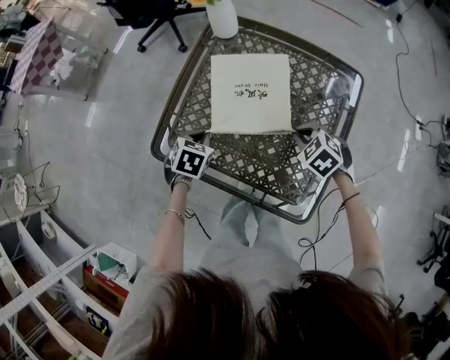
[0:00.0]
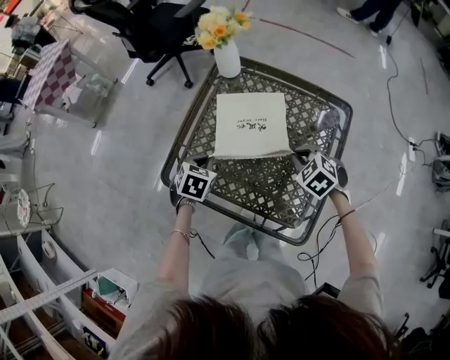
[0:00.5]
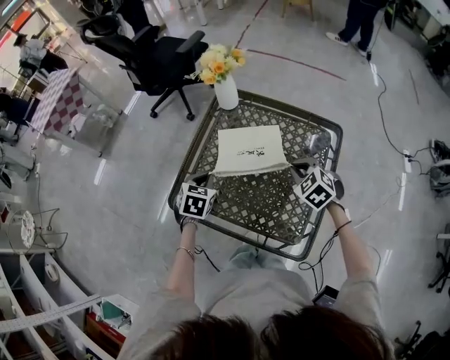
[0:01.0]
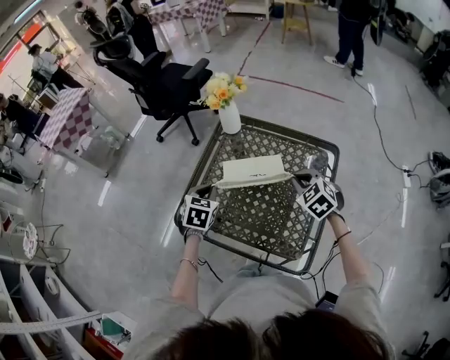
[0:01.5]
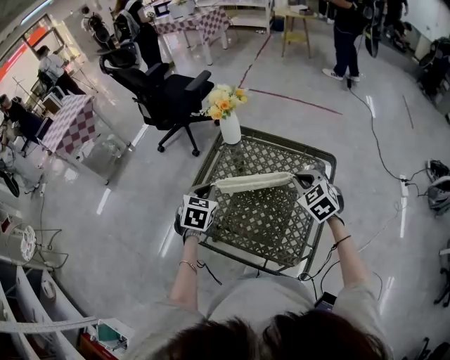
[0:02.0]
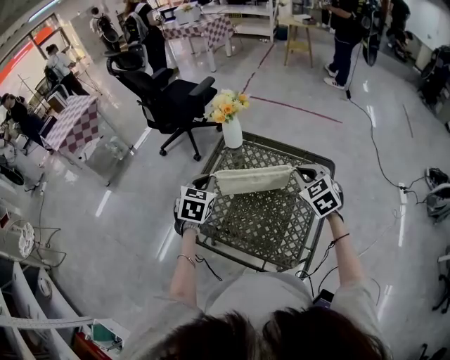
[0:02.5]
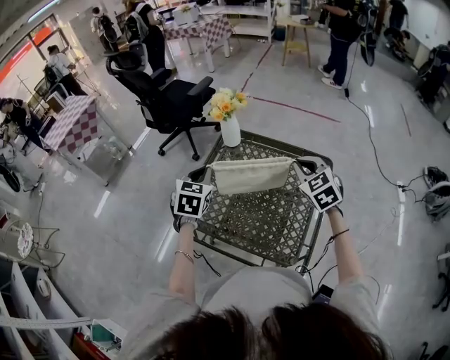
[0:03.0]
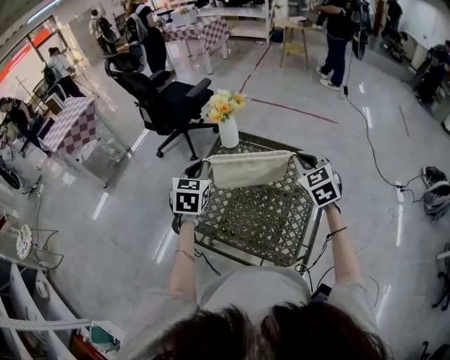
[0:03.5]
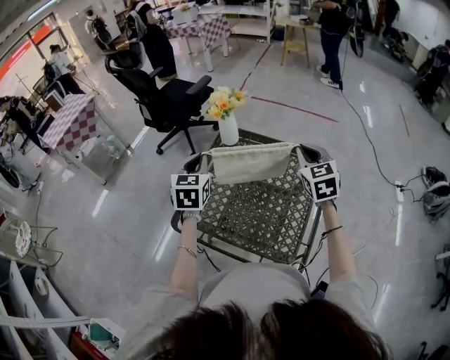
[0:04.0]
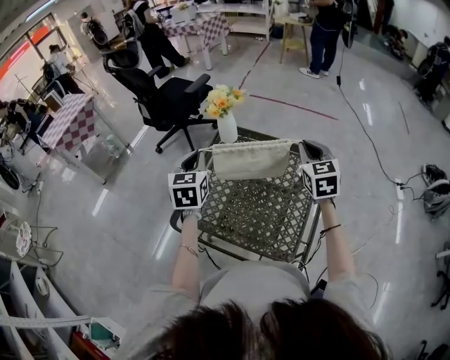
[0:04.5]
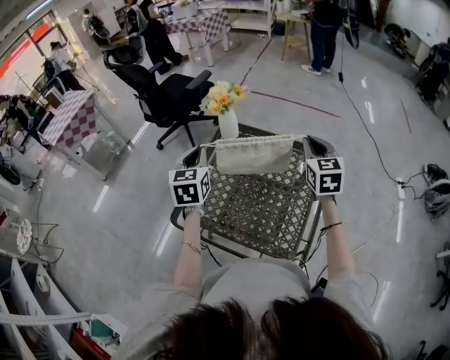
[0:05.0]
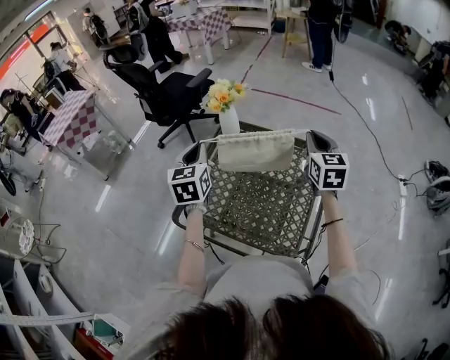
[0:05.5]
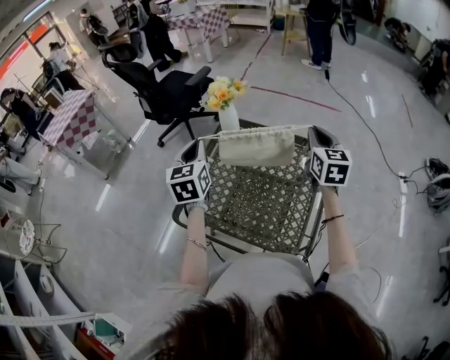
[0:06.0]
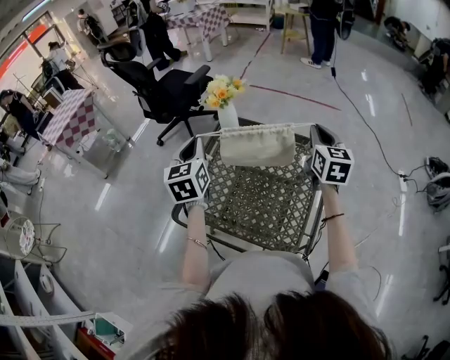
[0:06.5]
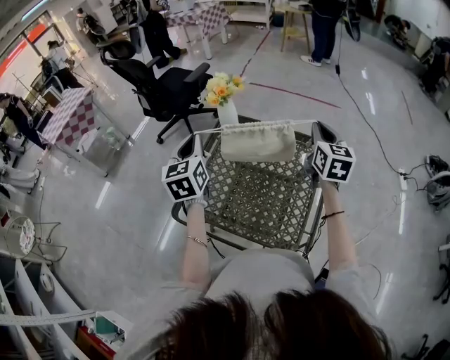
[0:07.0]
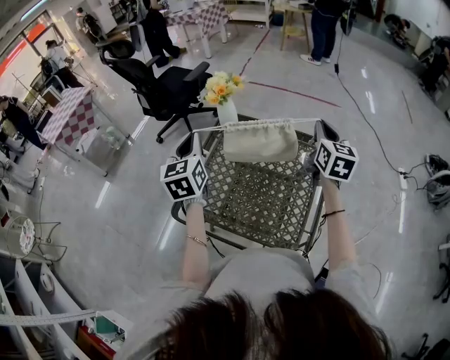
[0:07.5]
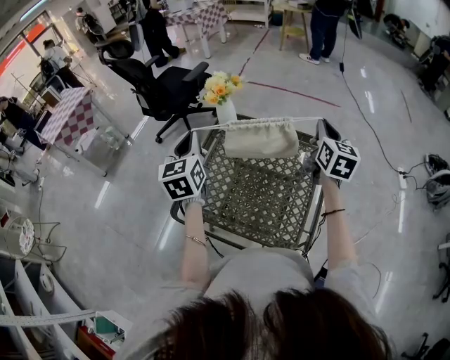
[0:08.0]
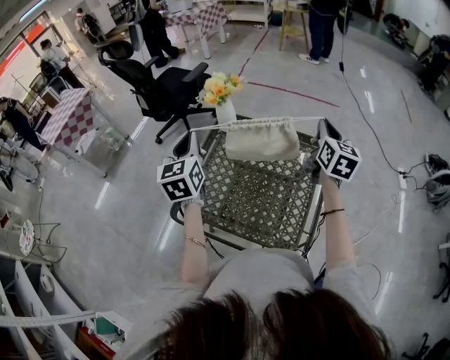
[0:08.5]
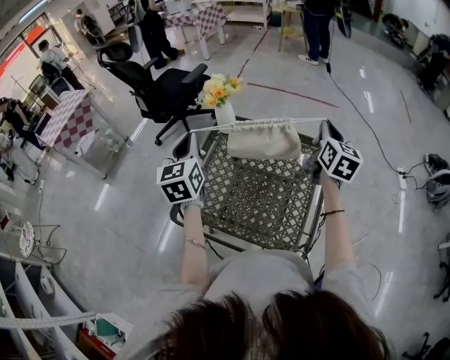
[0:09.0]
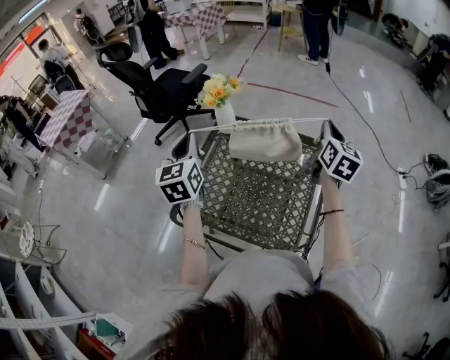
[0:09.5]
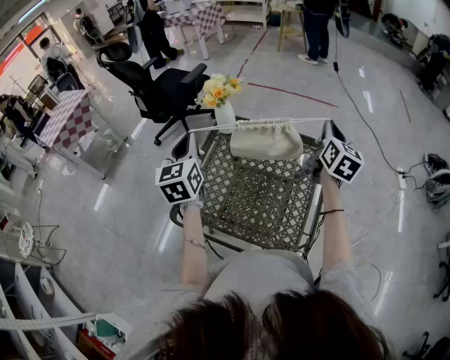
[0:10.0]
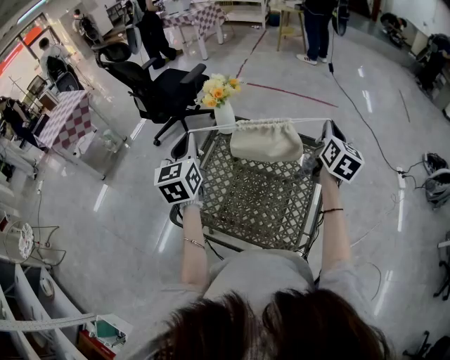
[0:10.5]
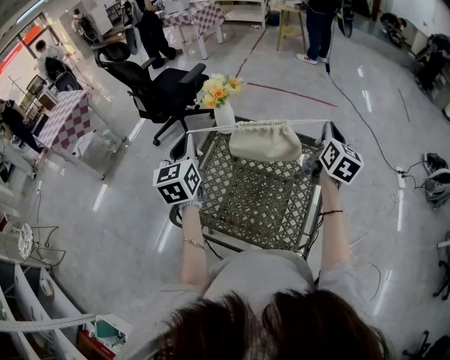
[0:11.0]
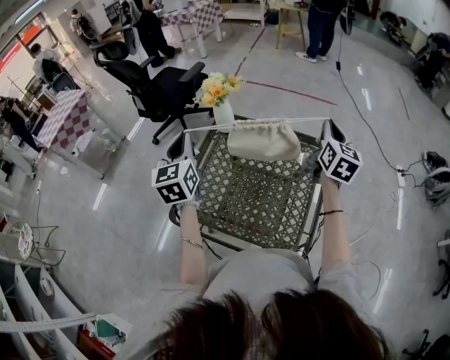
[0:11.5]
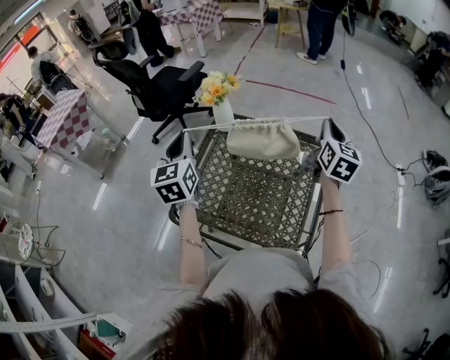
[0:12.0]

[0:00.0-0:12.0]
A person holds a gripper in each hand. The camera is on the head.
0:00.0 to 0:02.0: The two grippers go roughly 20 cm upward. The right gripper swivels some 30 degrees, while the left gripper rotates approximately 20 degrees.
0:02.0 to 0:04.0: The two grippers go approximately 10 cm upward. The left gripper changes its angle by some 20 degrees, while the right gripper changes its angle by roughly 30 degrees.
0:04.0 to 0:06.0: The right gripper turns by approximately 20 degrees.
0:06.0 to 0:08.0: There are only small adjustments of the grippers.
0:08.0 to 0:12.0: There are only small adjustments of the grippers.

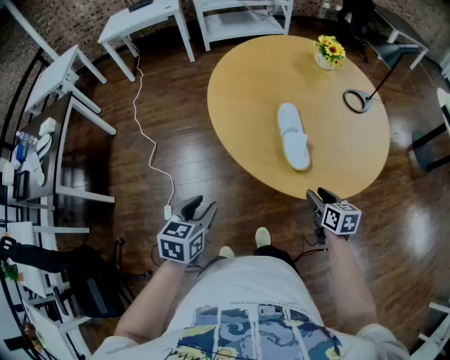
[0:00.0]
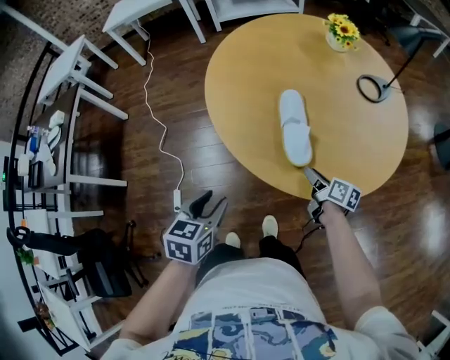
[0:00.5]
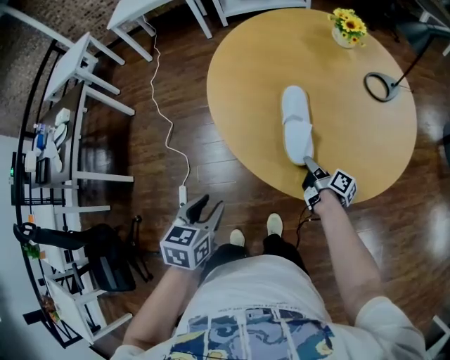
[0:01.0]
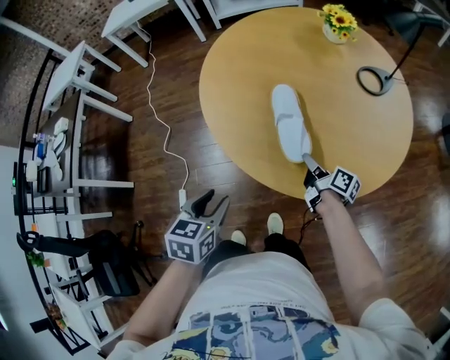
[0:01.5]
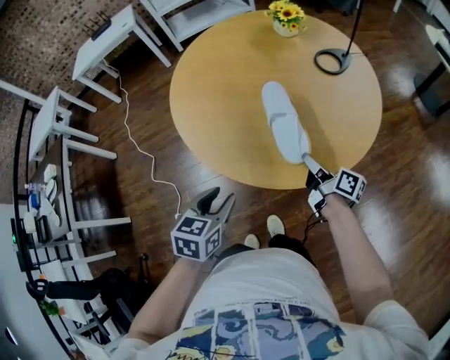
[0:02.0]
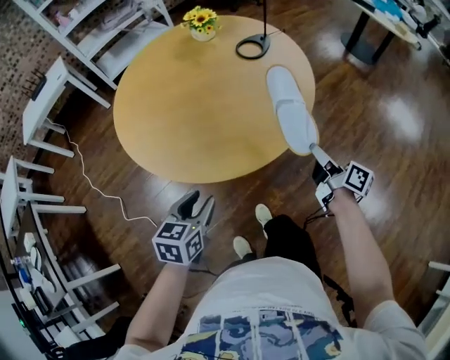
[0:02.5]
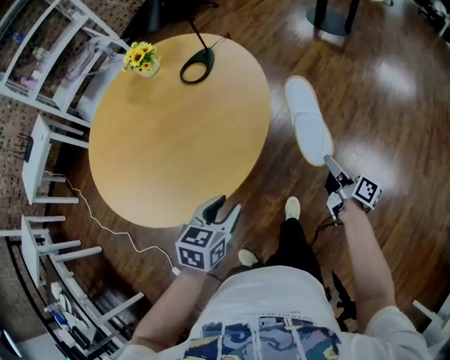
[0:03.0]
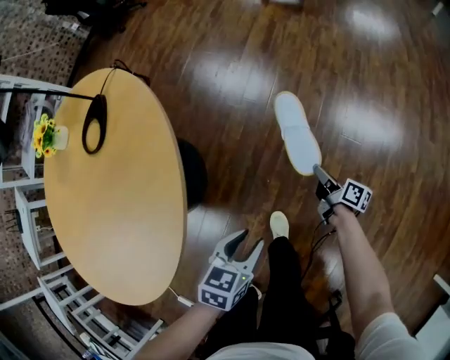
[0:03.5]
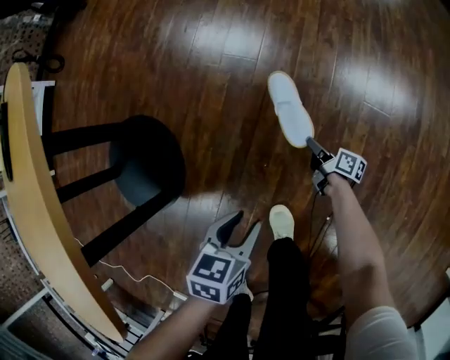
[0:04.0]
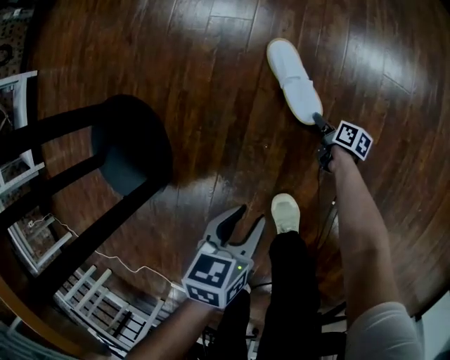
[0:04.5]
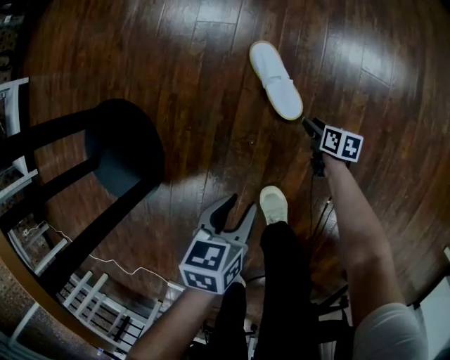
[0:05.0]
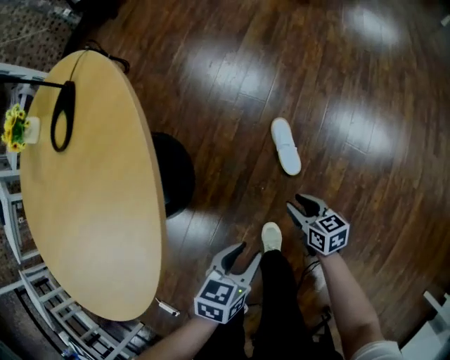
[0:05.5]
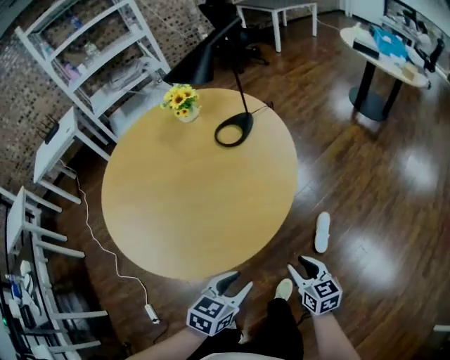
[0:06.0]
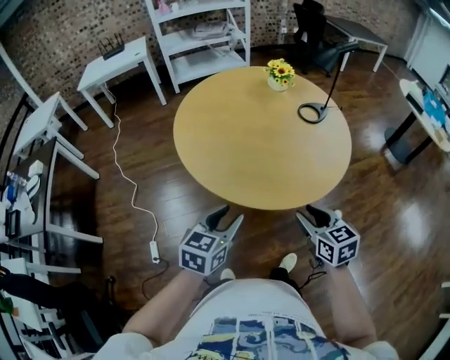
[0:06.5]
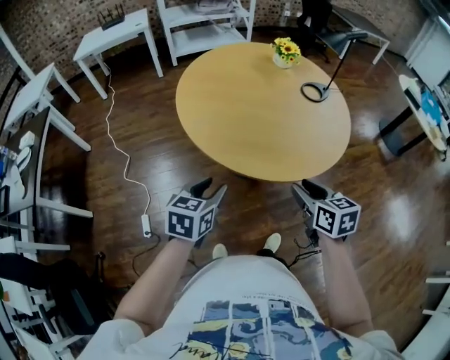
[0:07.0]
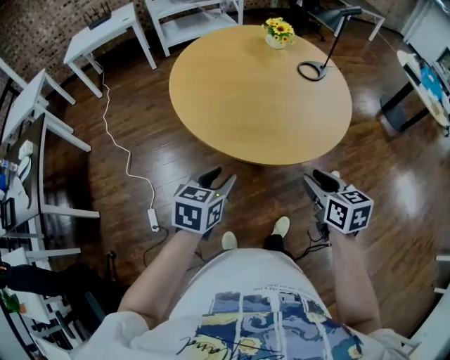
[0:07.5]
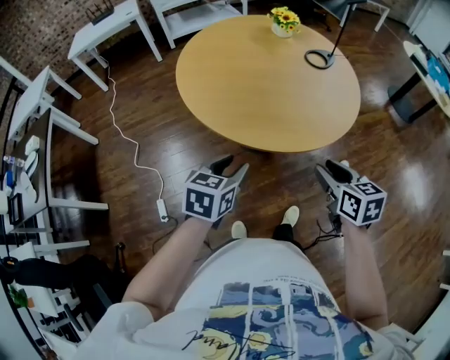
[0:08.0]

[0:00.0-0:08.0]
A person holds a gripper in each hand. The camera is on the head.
0:00.0 to 0:02.0: The left gripper is displaced to the right by some 20 cm. The right gripper goes some 10 cm to the right and forward, rotates around the line of its fingers by approximately 40 degrees, clockwise from behind, and closes its fingers.
0:02.0 to 0:04.0: The two grippers travel together, approximately 70 cm. The left gripper changes its angle by about 50 degrees; the right gripper heads downward, covering about 70 cm, and changes its angle by about 50 degrees.
0:04.0 to 0:06.0: Both grippers move upward, about 60 cm. The left gripper changes its angle by some 30 degrees. Meanwhile the right gripper rotates around the line of its fingers by some 70 degrees, counterclockwise from behind, and opens up.
0:06.0 to 0:08.0: The right gripper is displaced to the left and upward by approximately 40 cm, while the left gripper heads to the left, covering about 40 cm, and swivels roughly 20 degrees.

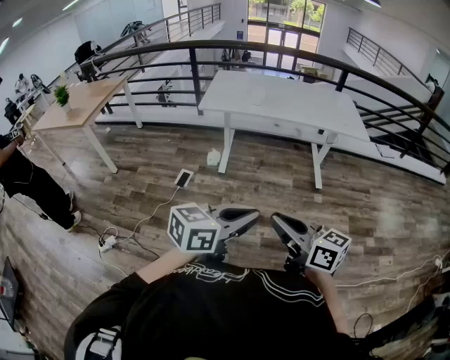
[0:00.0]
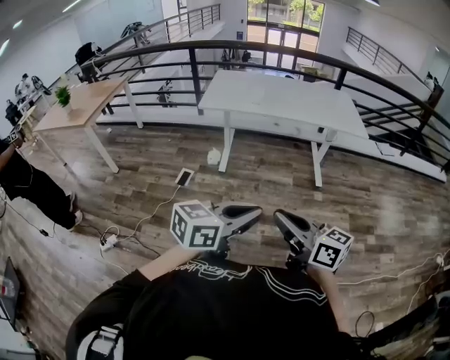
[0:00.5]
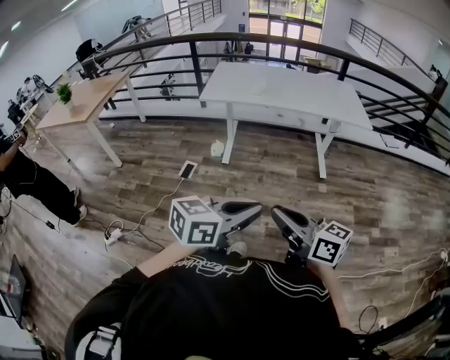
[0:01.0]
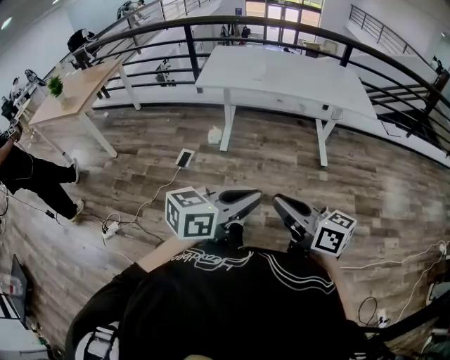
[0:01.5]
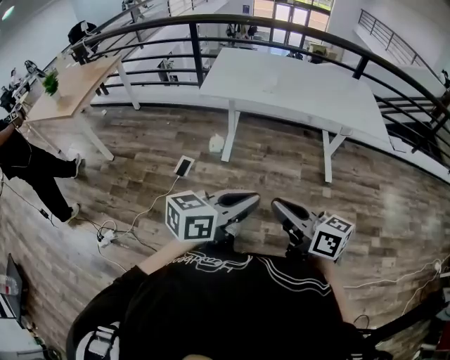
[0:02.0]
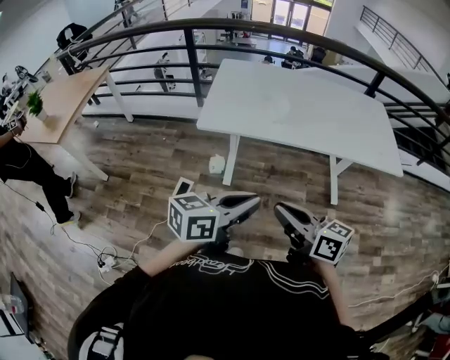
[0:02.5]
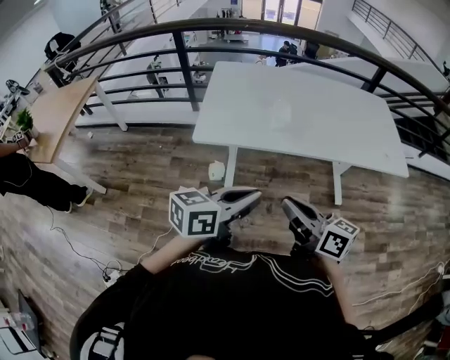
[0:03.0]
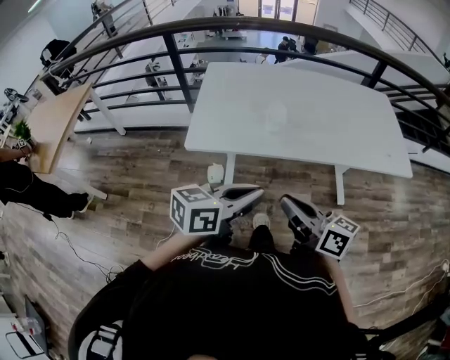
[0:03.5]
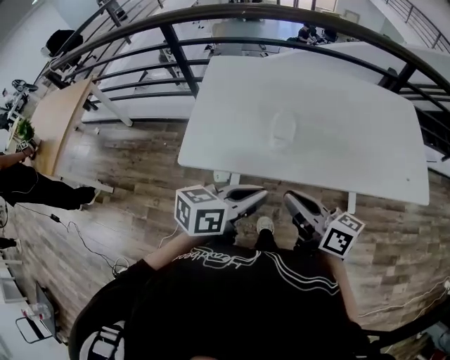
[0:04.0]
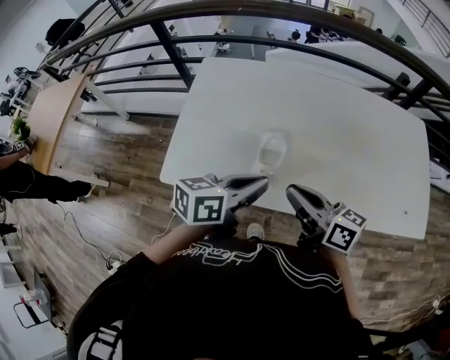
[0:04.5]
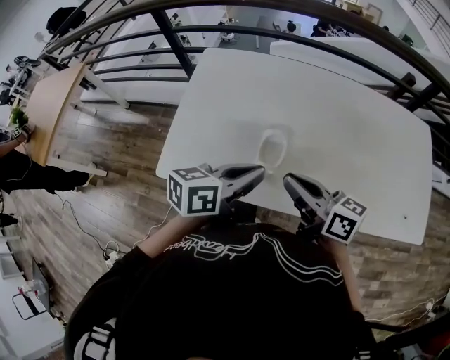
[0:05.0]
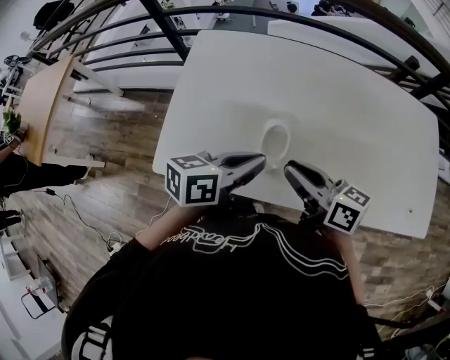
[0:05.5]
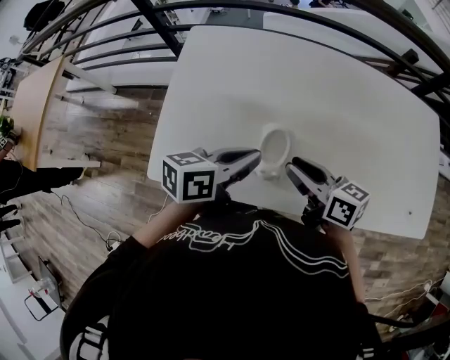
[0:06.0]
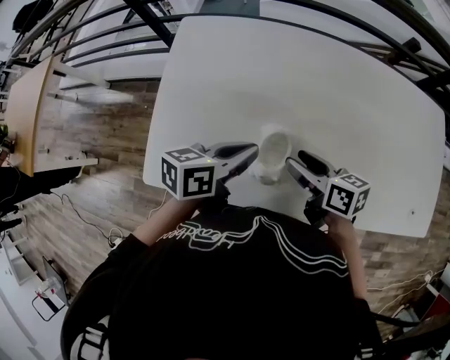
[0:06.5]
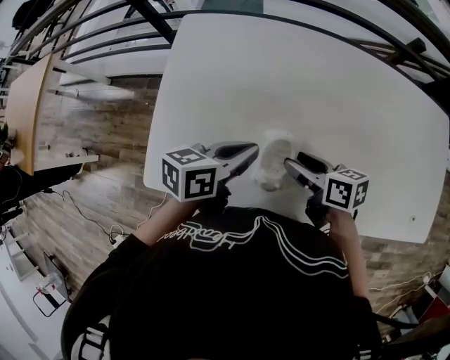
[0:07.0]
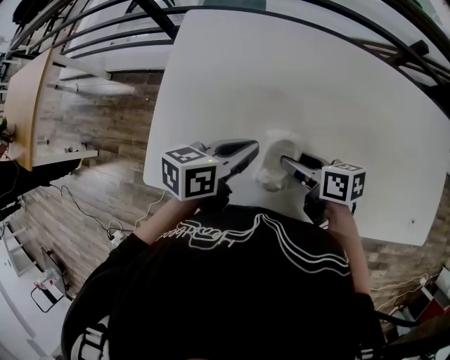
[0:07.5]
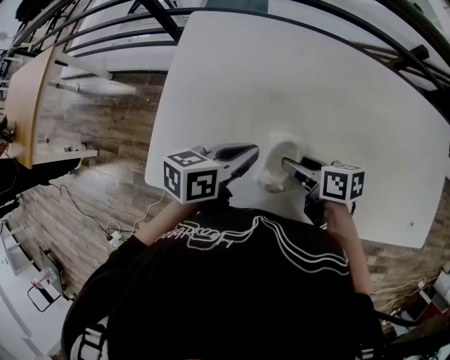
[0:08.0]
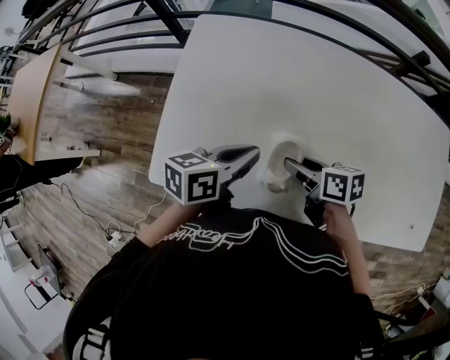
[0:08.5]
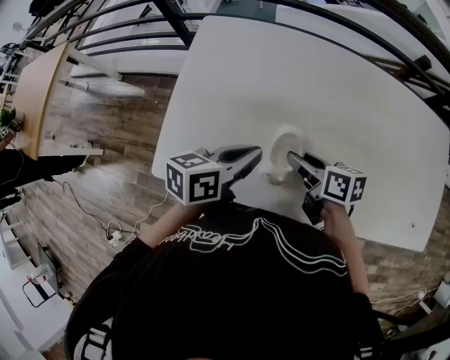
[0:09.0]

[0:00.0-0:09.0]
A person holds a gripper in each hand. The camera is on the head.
0:00.0 to 0:02.0: The grippers both shift forward by some 15 cm.
0:02.0 to 0:04.5: The pair of grippers is taken forward, roughly 70 cm.
0:04.5 to 0:07.0: The left gripper travels forward and downward by some 15 cm. Meanwhile the right gripper is displaced downward and forward by about 20 cm, changes its angle by some 30 degrees, and opens its fingers.
0:07.0 to 0:09.0: The grippers stay close to where they were, moving slightly.
